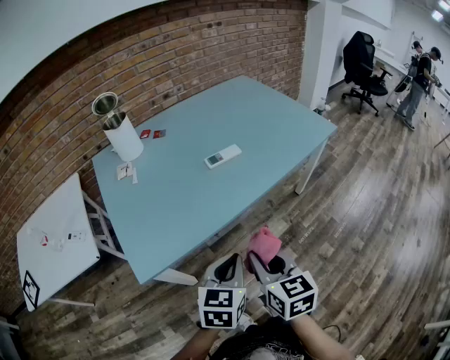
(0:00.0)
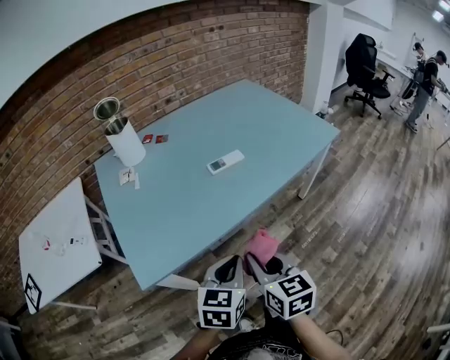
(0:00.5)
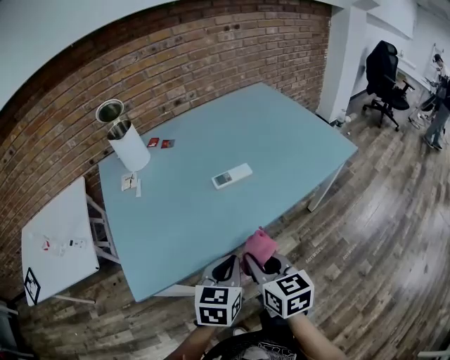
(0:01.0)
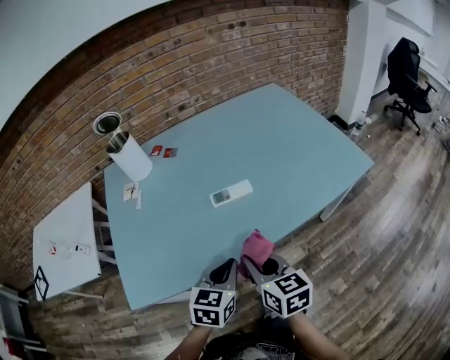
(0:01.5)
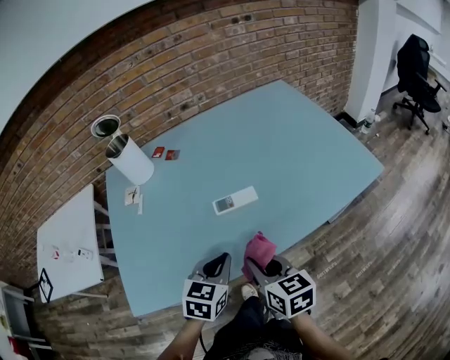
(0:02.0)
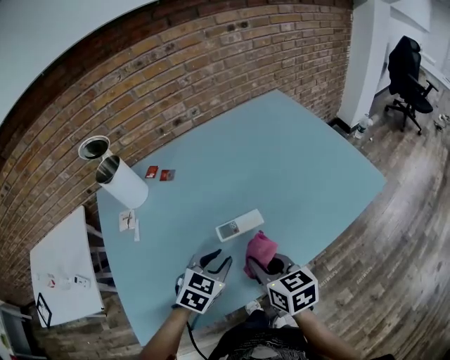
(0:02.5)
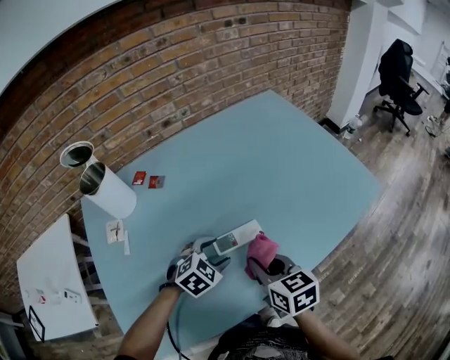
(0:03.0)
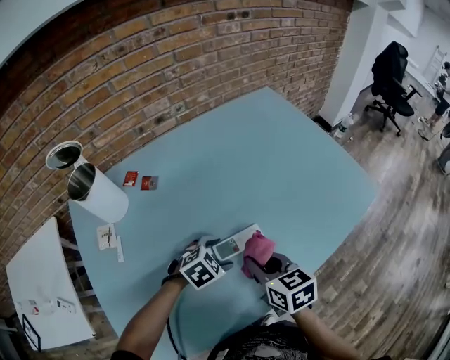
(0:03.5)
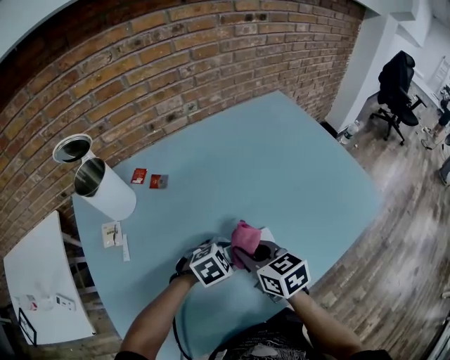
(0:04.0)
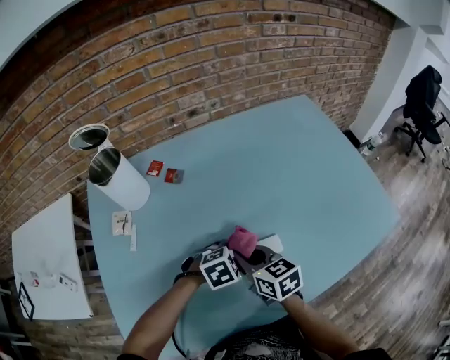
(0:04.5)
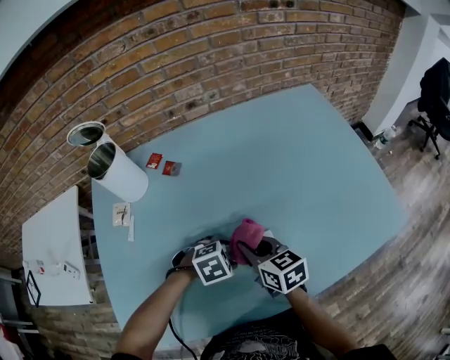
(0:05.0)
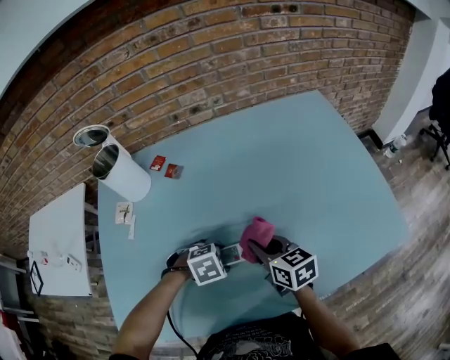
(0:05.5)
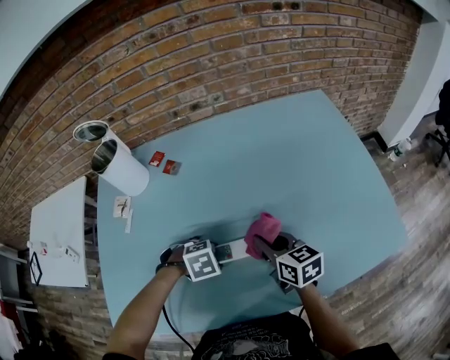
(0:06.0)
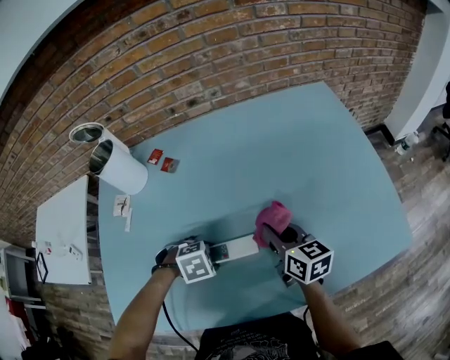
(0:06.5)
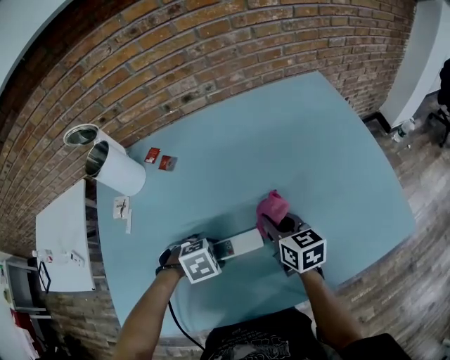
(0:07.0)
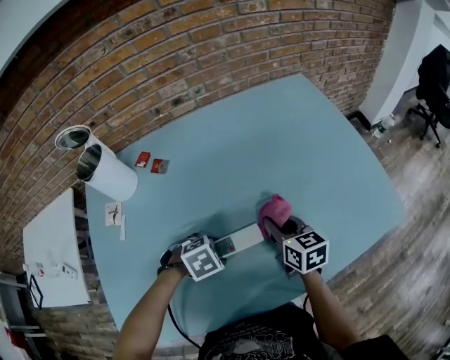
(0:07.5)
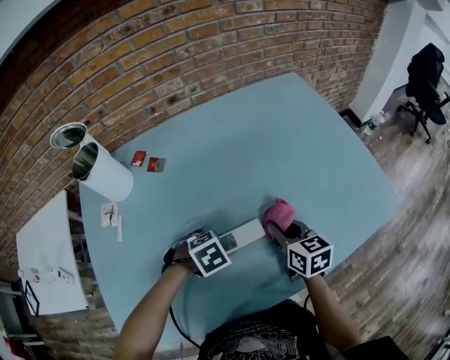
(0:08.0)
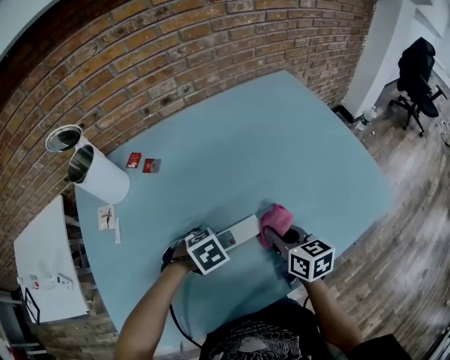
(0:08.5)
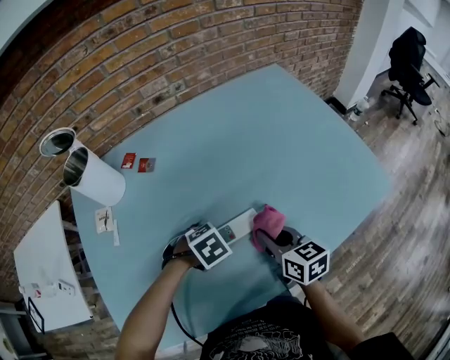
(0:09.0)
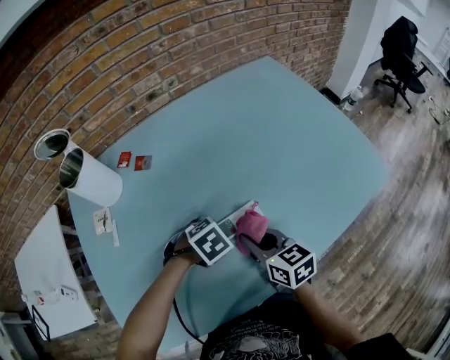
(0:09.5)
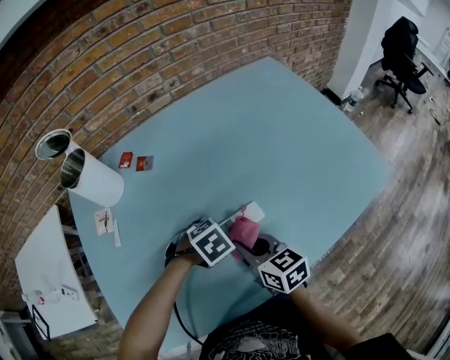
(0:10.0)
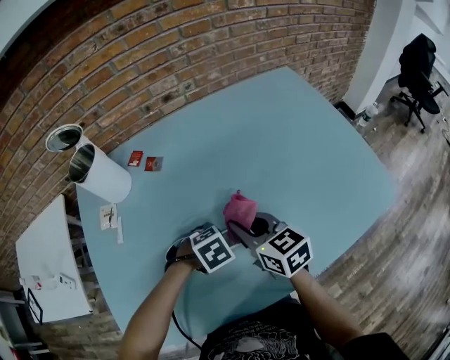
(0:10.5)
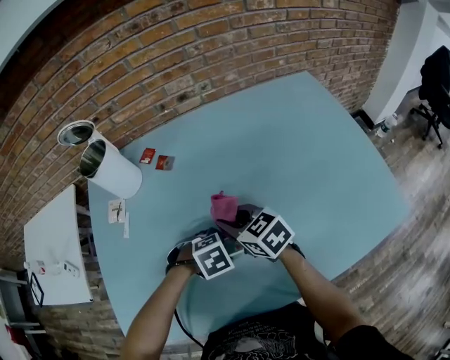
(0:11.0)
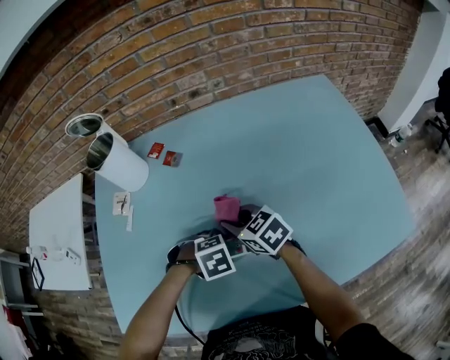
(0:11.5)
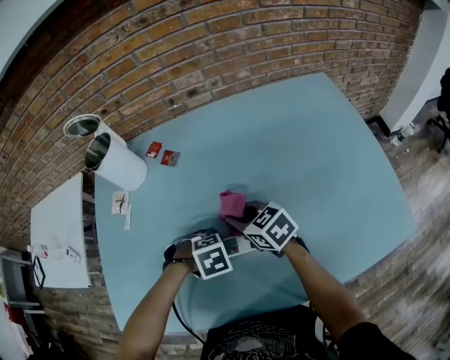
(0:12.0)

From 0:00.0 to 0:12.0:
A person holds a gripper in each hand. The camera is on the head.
From 0:00.0 to 0:02.0: Both grippers move forward, roughly 20 cm. The right gripper turns by approximately 20 degrees.
From 0:02.0 to 0:04.0: The right gripper ends up approximately 20 cm from where it was; the left gripper shifts by some 20 cm, turns by roughly 50 degrees, and opens its fingers.
From 0:04.0 to 0:06.0: The left gripper rotates some 30 degrees. The right gripper ends up about 10 cm from where it was.
From 0:08.0 to 0:10.0: The right gripper ends up some 15 cm from where it was.
From 0:10.0 to 0:12.0: The right gripper shifts by approximately 15 cm, and swivels some 40 degrees.

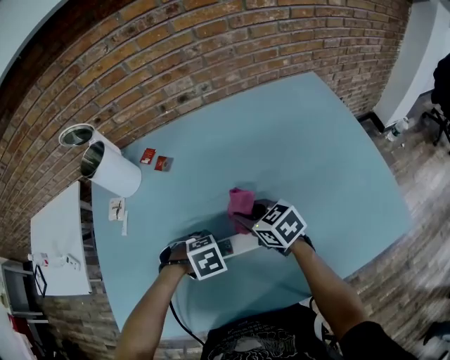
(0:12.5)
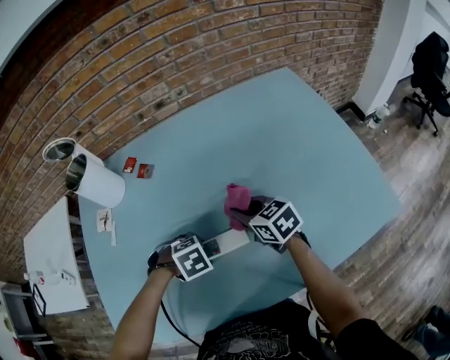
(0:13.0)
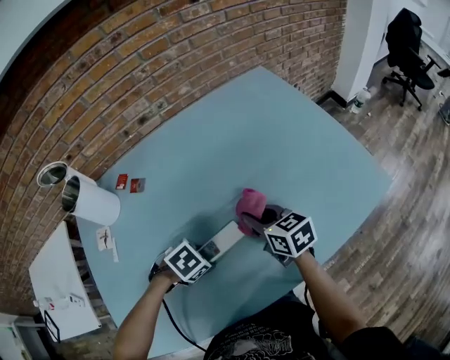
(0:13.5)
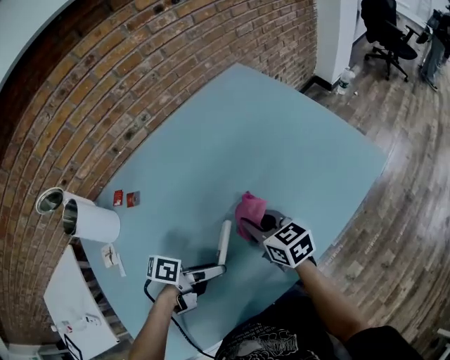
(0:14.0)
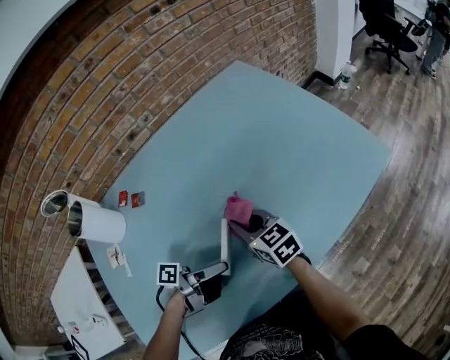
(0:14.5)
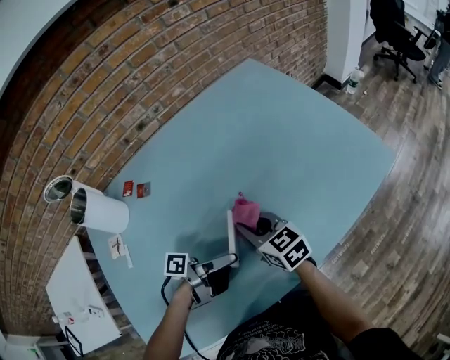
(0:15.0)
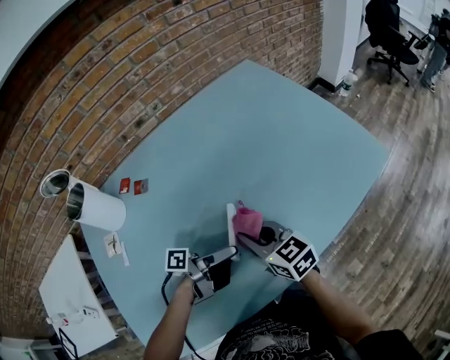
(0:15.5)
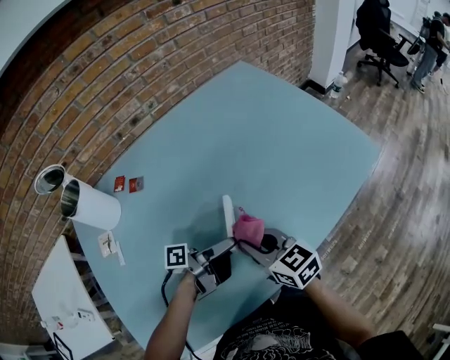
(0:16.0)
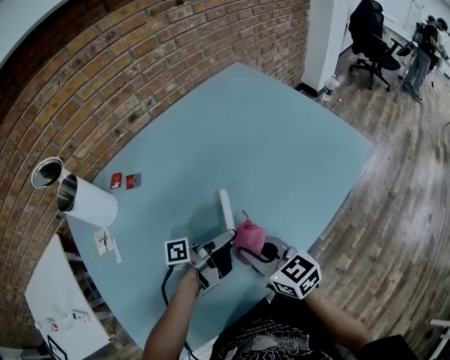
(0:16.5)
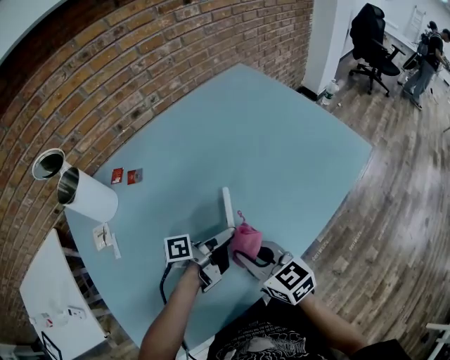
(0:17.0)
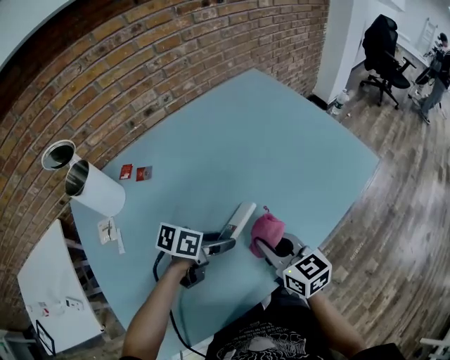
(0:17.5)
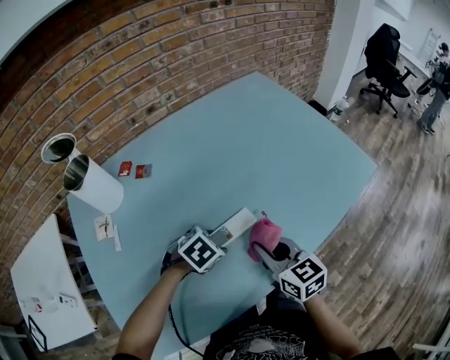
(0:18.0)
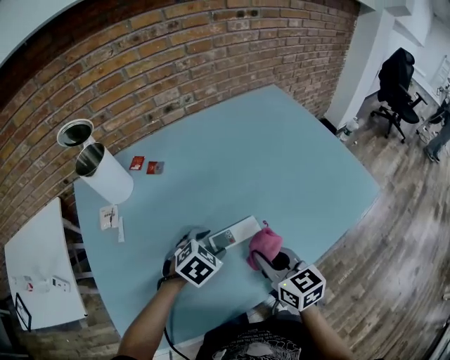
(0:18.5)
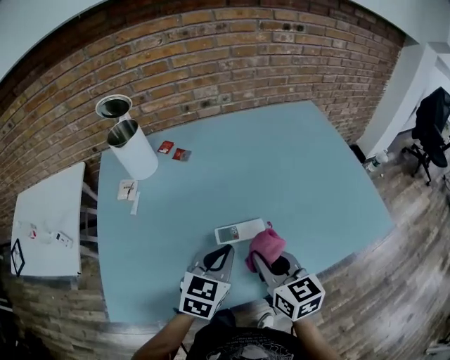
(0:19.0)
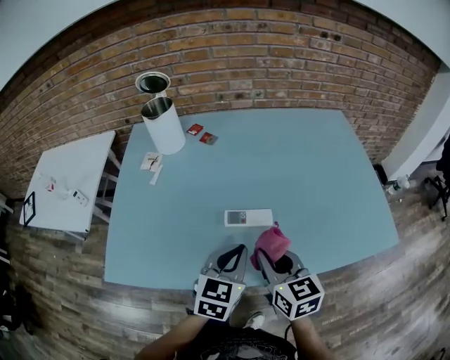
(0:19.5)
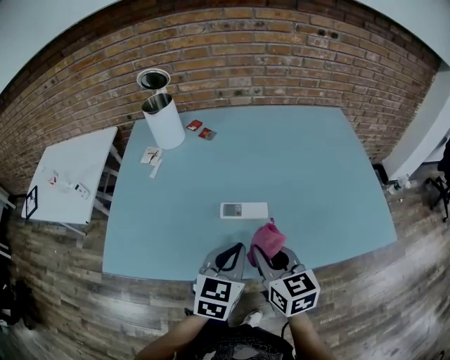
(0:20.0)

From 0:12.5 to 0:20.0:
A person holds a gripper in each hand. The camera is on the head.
From 0:12.5 to 0:14.5: The right gripper turns by about 30 degrees. The left gripper heads upward, covering roughly 5 cm, and points its fingers about 80 degrees further upward.
From 0:14.5 to 0:16.5: The right gripper goes roughly 15 cm backward.
From 0:16.5 to 0:18.0: The left gripper travels to the left and downward by about 10 cm, and tilts its fingers some 70 degrees downward.
From 0:18.0 to 0:20.0: The left gripper travels upward by approximately 15 cm, tips its fingers upward by about 40 degrees, and closes its fingers, while the right gripper changes place by roughly 10 cm, and changes its angle by some 20 degrees.

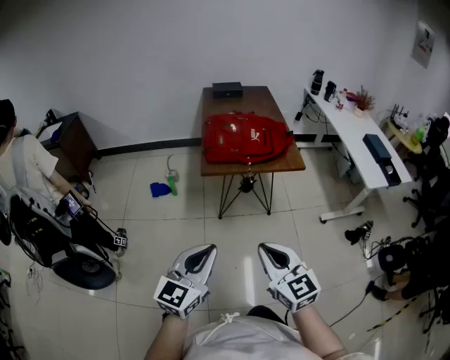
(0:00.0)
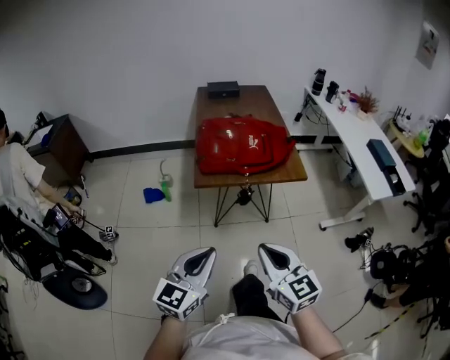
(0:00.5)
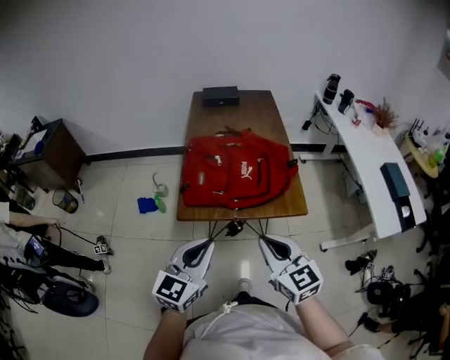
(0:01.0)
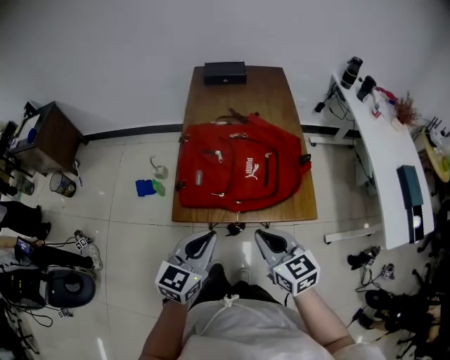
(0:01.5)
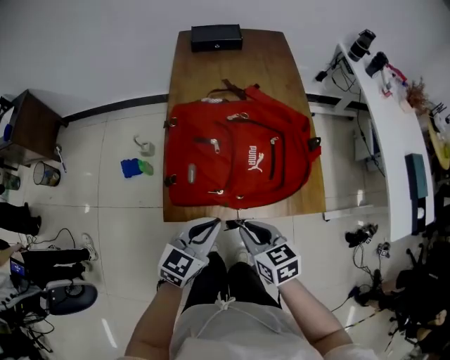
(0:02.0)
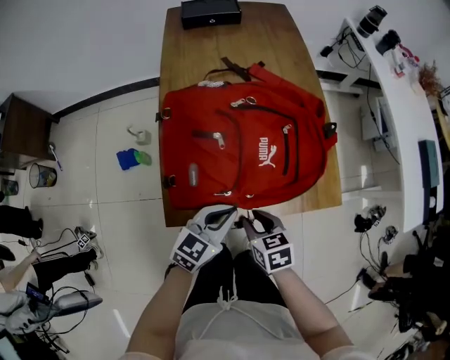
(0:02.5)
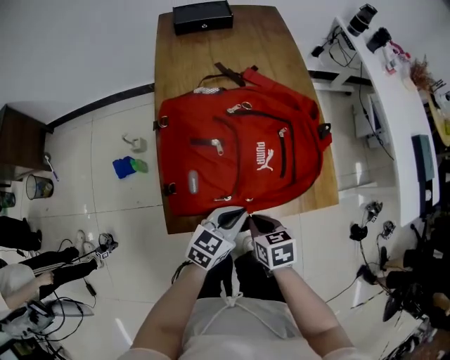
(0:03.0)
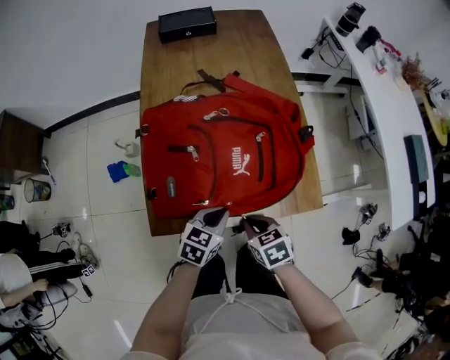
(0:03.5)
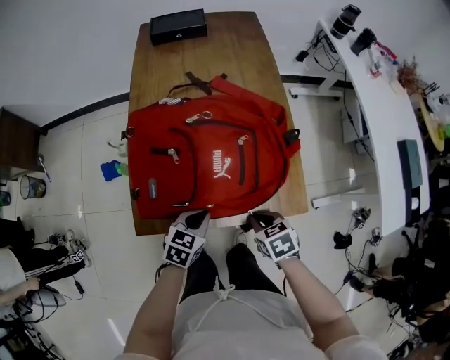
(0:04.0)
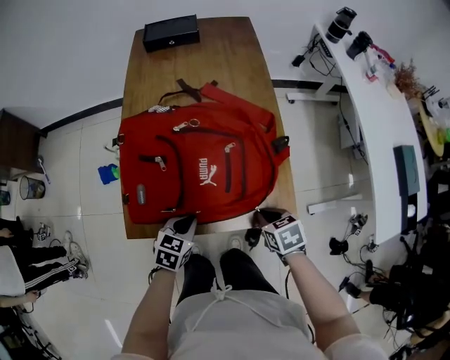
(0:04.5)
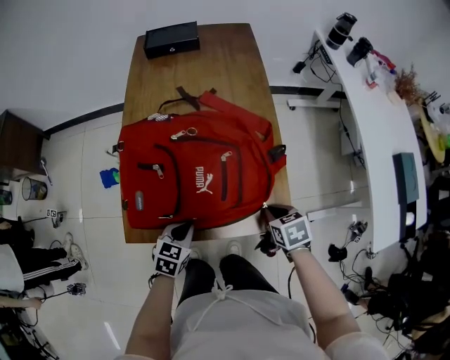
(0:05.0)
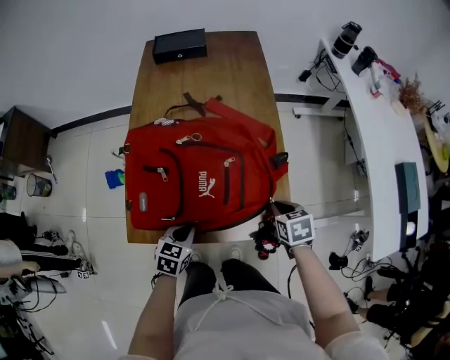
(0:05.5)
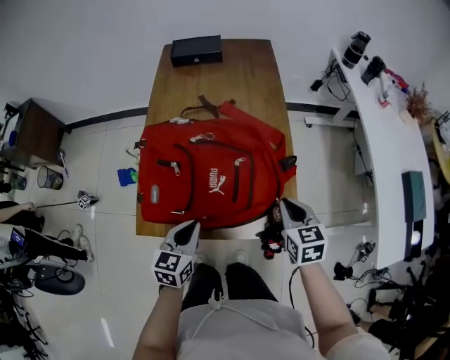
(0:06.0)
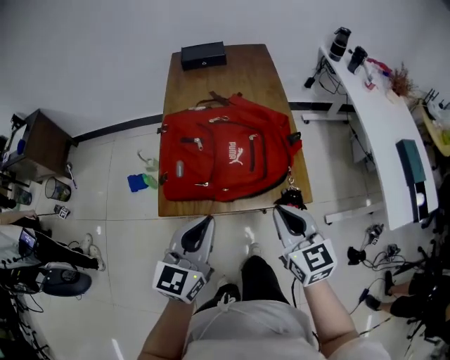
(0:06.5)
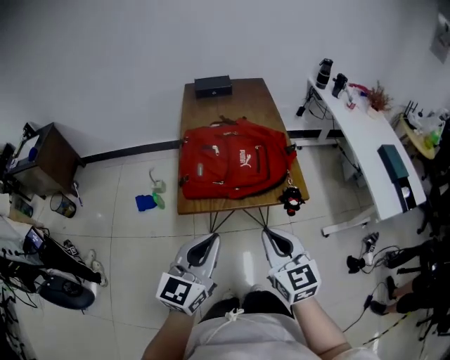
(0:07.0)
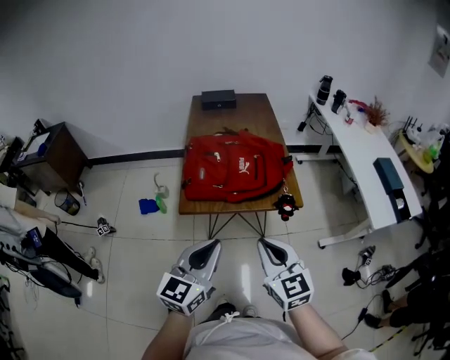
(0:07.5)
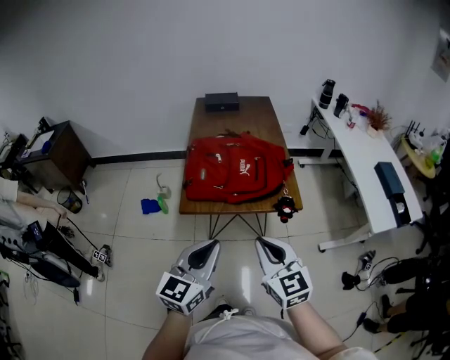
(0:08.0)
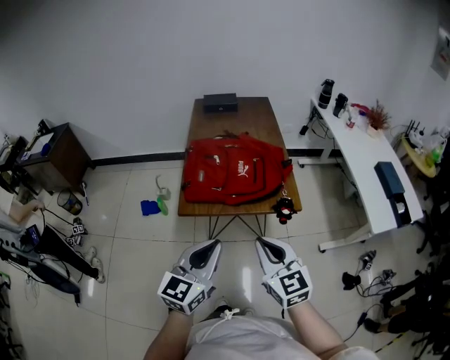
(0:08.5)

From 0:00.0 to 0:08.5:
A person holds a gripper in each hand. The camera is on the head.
From 0:00.0 to 0:02.0: The pair of grippers is taken forward, approximately 50 cm. The right gripper travels downward by about 20 cm, and rotates about 30 degrees.
From 0:02.0 to 0:04.0: The left gripper moves downward and forward, about 15 cm, and changes its angle by roughly 20 degrees, while the right gripper is displaced to the right, downward and forward by about 15 cm, and swivels some 20 degrees.
From 0:04.0 to 0:06.5: The right gripper travels upward by roughly 20 cm, and tilts its fingers about 40 degrees upward; the left gripper travels upward and backward by about 25 cm, and tips its fingers upward by roughly 30 degrees.
From 0:06.5 to 0:08.5: Both grippers travel together backward, some 20 cm.
